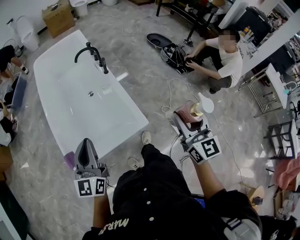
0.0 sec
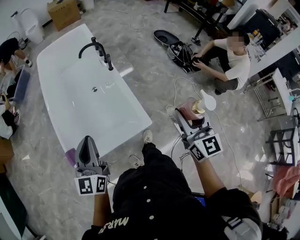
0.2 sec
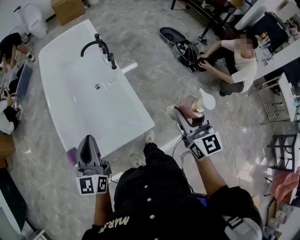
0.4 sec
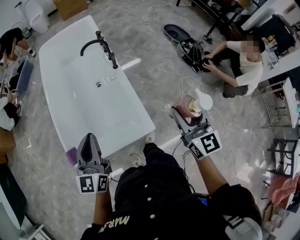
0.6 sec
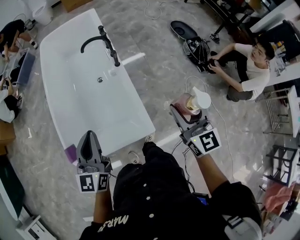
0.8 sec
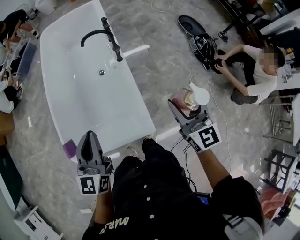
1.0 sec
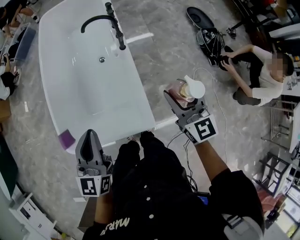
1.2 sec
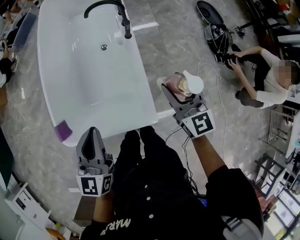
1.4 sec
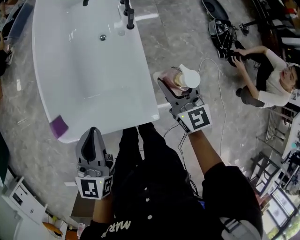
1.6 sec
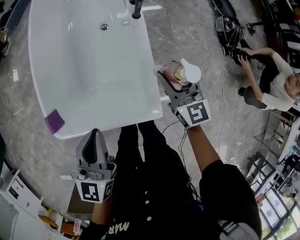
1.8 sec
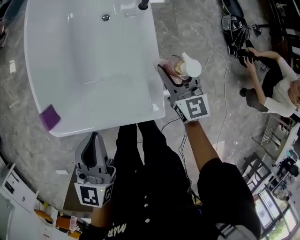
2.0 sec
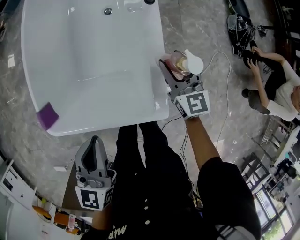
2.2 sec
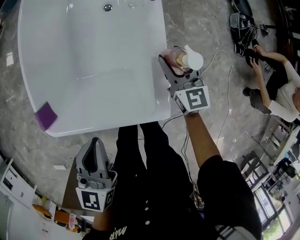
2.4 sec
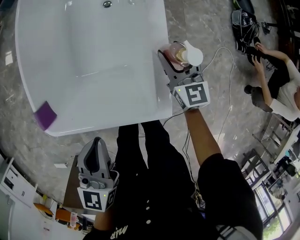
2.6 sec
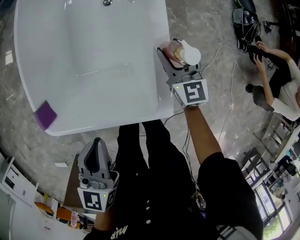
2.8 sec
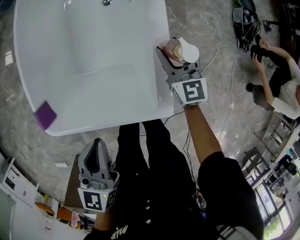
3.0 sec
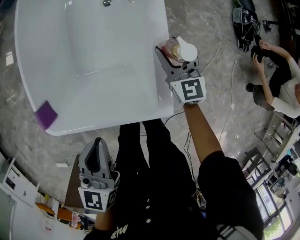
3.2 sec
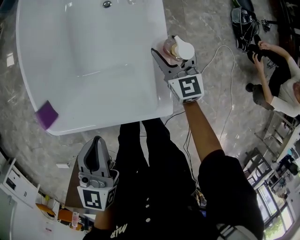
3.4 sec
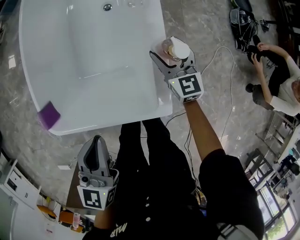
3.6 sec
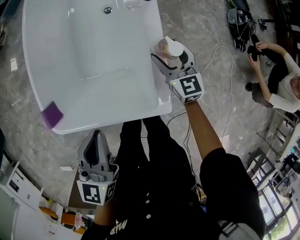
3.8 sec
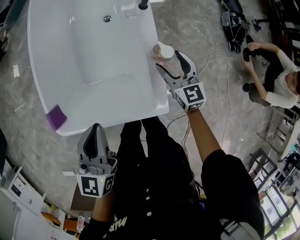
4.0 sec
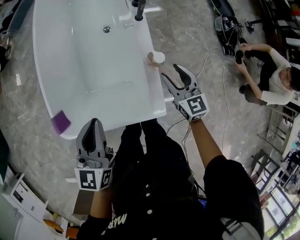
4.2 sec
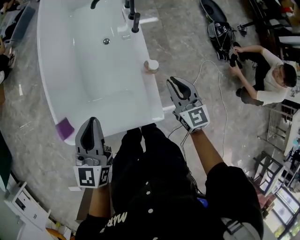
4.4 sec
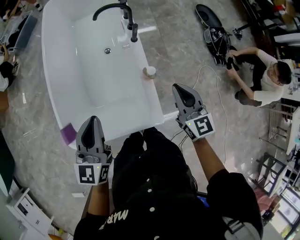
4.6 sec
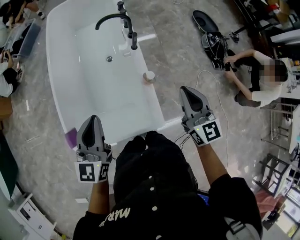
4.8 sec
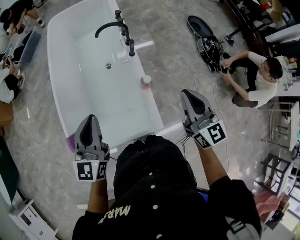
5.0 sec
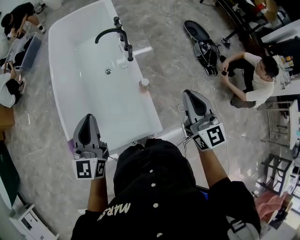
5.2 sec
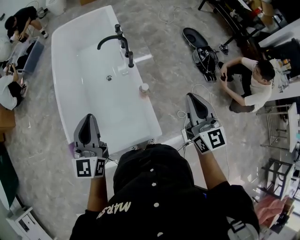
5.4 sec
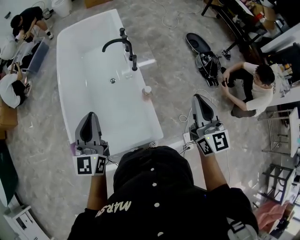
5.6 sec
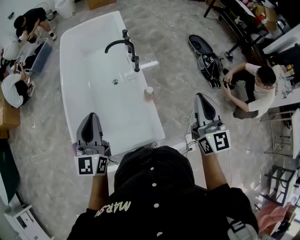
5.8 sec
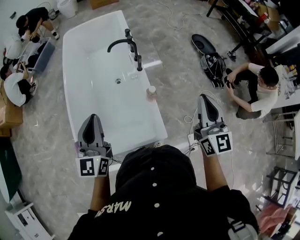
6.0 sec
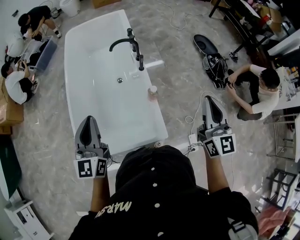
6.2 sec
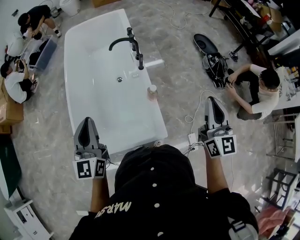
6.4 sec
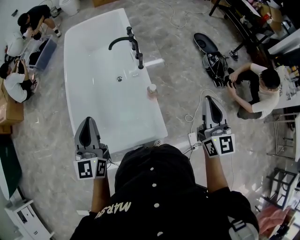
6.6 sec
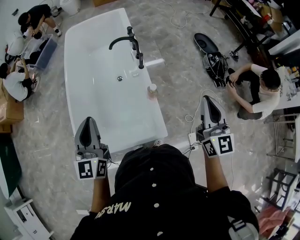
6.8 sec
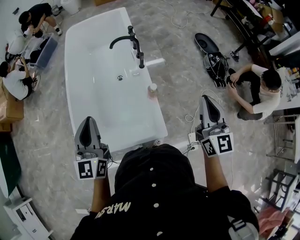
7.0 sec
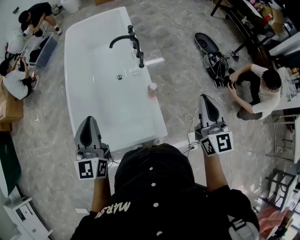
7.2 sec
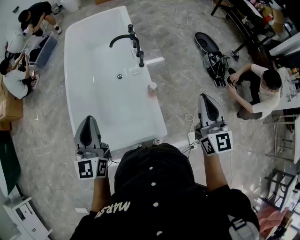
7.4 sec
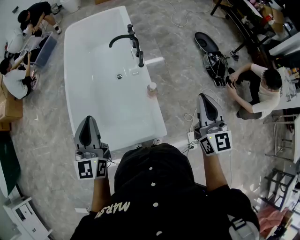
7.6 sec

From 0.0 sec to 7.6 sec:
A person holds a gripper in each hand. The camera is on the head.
From 0.0 sec to 1.6 sec: The left gripper shifts roughly 20 cm forward, downward and to the right, and swivels approximately 20 degrees. Meanwhile the right gripper shifts approximately 40 cm forward and downward, and swivels some 30 degrees.
From 1.6 sec to 3.0 sec: The right gripper travels downward by approximately 20 cm, while the left gripper travels downward by about 15 cm.
From 3.0 sec to 4.6 sec: The left gripper shifts roughly 15 cm upward. Meanwhile the right gripper is displaced upward and backward by some 30 cm, and closes up.
From 4.6 sec to 6.0 sec: The right gripper goes roughly 20 cm upward and to the right, and changes its angle by some 20 degrees; the left gripper shifts approximately 10 cm upward.
From 6.0 sec to 7.6 sec: The grippers move only a little.

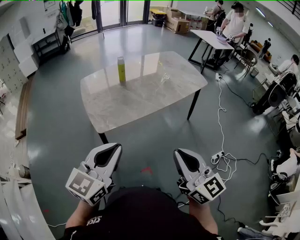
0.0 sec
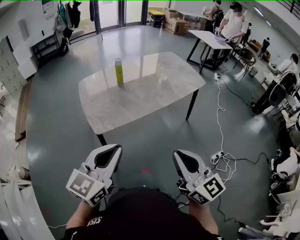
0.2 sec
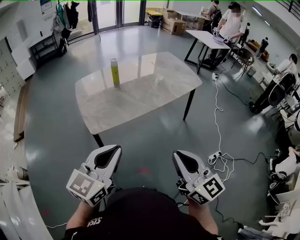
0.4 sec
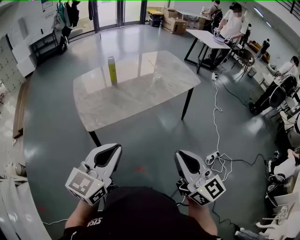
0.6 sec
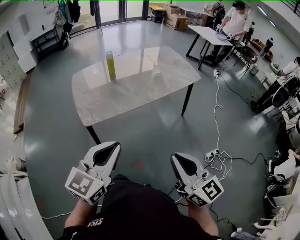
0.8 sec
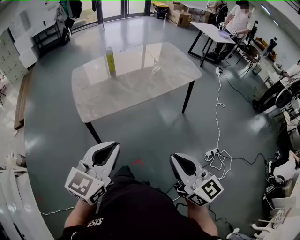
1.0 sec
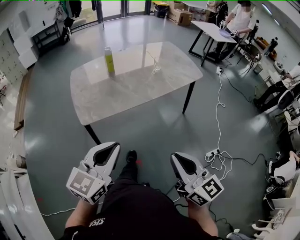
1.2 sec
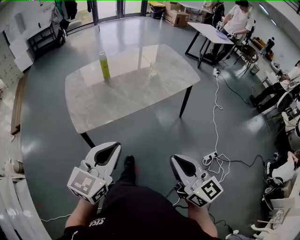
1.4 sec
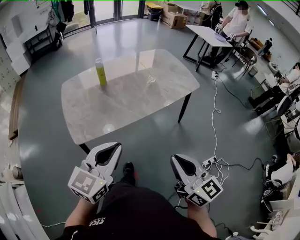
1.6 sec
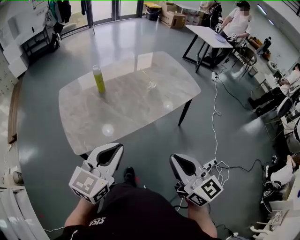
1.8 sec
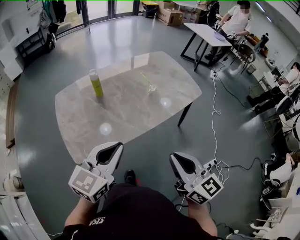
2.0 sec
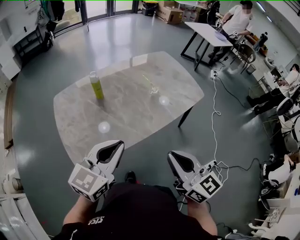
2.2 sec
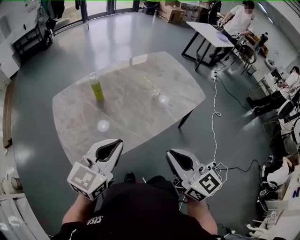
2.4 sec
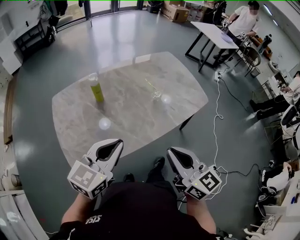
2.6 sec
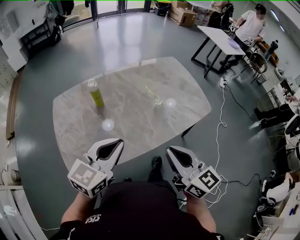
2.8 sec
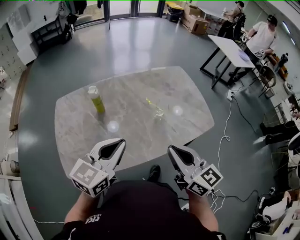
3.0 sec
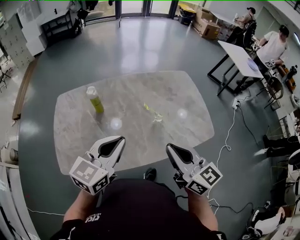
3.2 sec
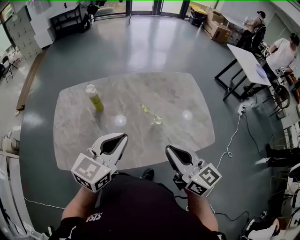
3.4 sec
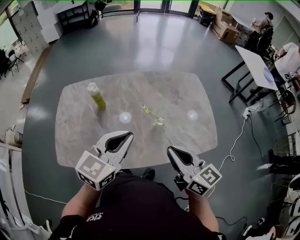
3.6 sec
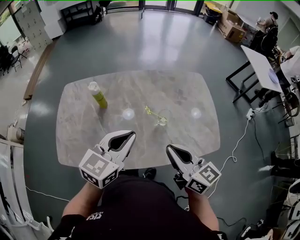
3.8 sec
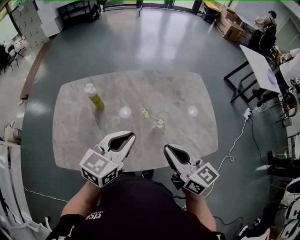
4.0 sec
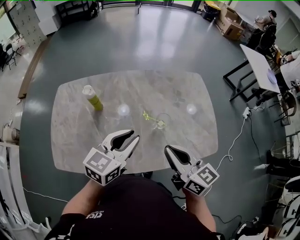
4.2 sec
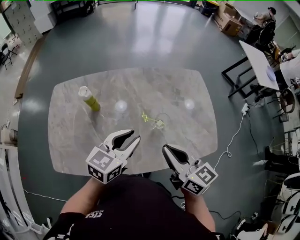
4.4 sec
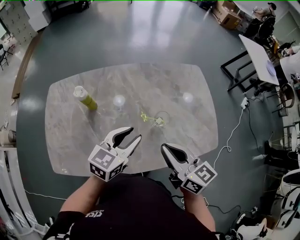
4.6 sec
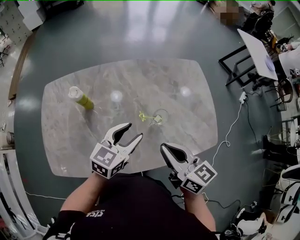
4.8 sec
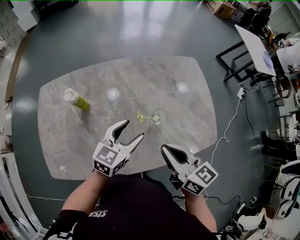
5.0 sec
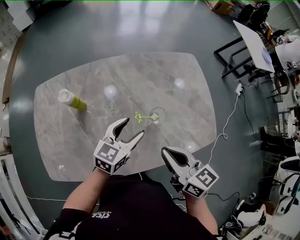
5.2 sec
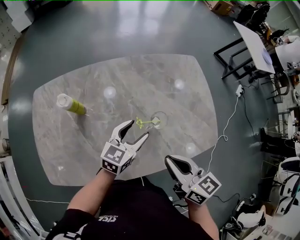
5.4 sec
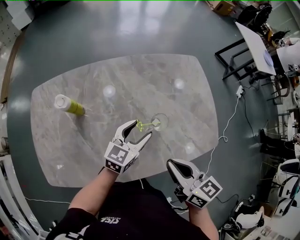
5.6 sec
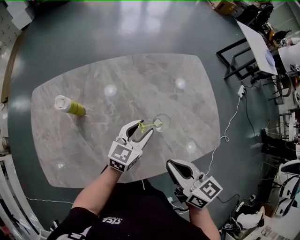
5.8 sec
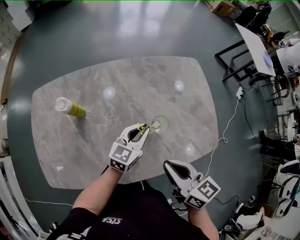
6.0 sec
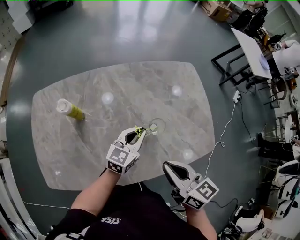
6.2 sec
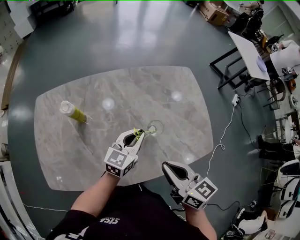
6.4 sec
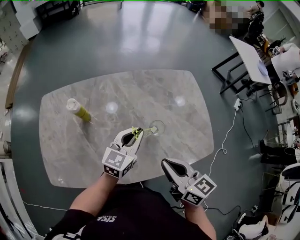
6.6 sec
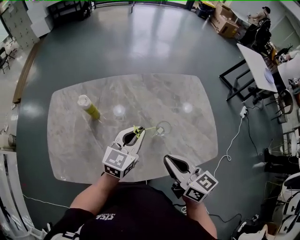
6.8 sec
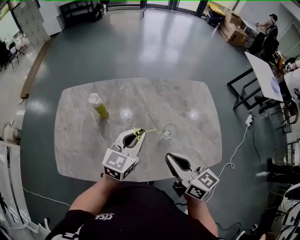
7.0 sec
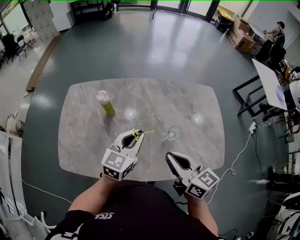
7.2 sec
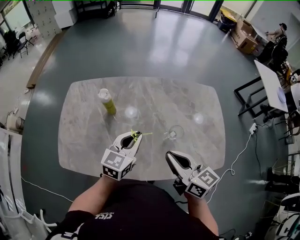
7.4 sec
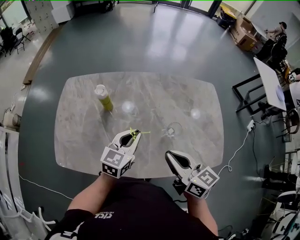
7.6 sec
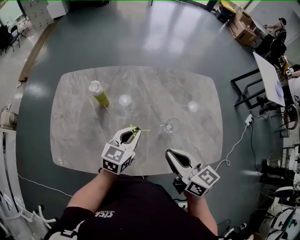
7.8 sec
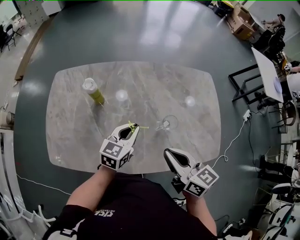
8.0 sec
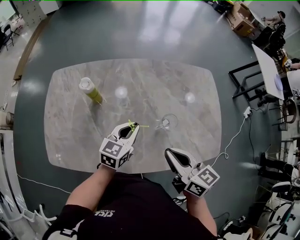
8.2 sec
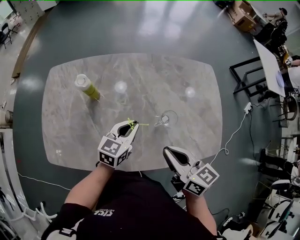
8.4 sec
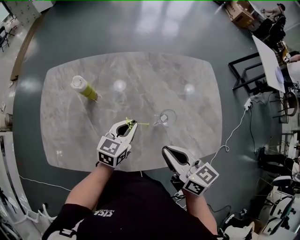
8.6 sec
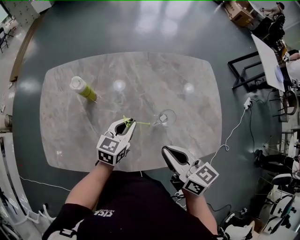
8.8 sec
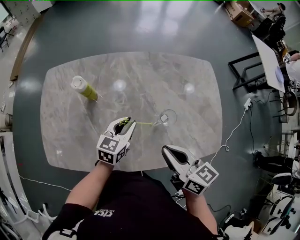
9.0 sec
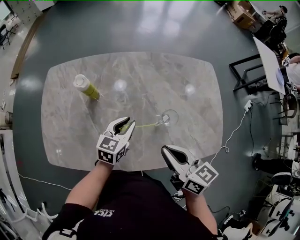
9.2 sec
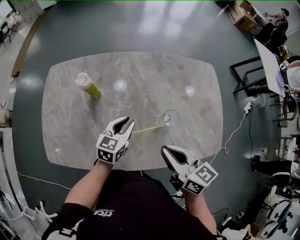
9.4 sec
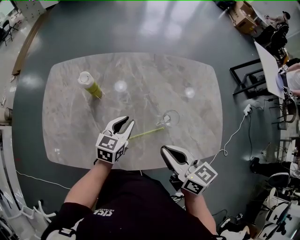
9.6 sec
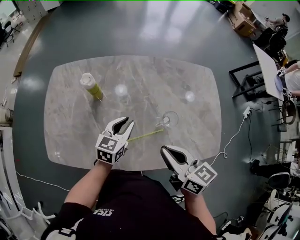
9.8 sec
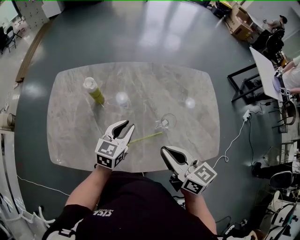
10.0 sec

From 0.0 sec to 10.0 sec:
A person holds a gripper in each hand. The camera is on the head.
From 0.0 sec to 1.4 sec: The two grippers go approximately 10 cm to the right.
From 1.4 sec to 2.8 sec: Both grippers move forward, about 35 cm.
From 2.8 sec to 4.2 sec: Both grippers travel together forward and to the right, about 20 cm. The right gripper rotates roughly 20 degrees.
From 4.2 sec to 5.8 sec: The left gripper is displaced downward, forward and to the right by some 20 cm, and opens. Meanwhile the right gripper moves downward, some 10 cm.
From 5.8 sec to 7.2 sec: The right gripper goes about 5 cm upward. The left gripper is displaced upward and to the left by approximately 15 cm, and closes its fingers.
From 7.2 sec to 8.6 sec: The left gripper goes about 10 cm downward, while the right gripper moves roughly 5 cm.
From 8.6 sec to 10.0 sec: The left gripper shifts by approximately 5 cm.

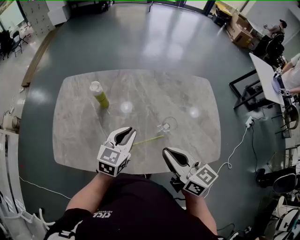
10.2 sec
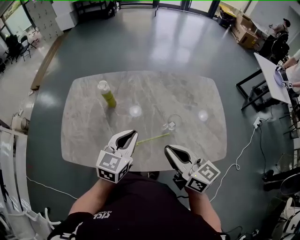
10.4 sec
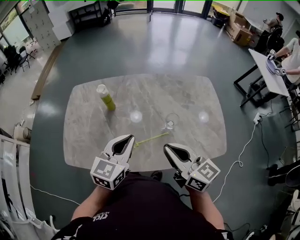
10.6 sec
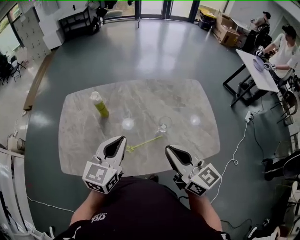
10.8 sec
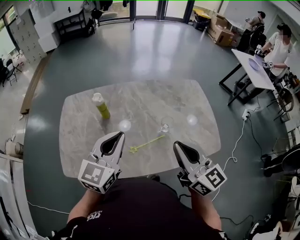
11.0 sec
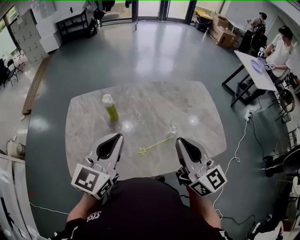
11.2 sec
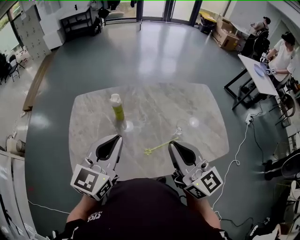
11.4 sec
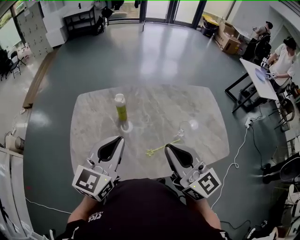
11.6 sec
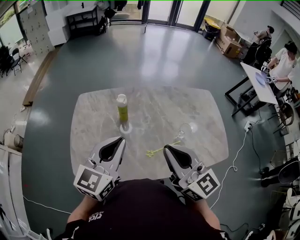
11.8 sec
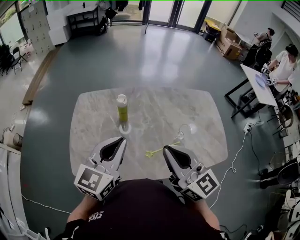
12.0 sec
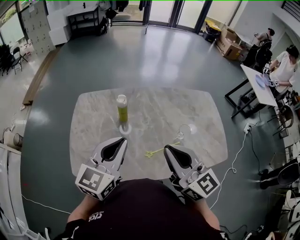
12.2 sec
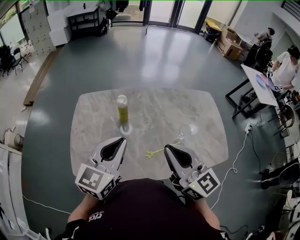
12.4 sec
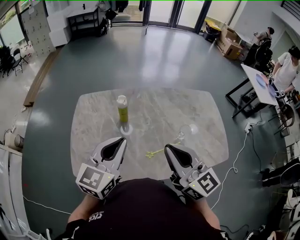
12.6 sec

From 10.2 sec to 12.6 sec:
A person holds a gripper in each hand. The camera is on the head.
From 10.2 sec to 11.4 sec: The left gripper moves upward and to the left, roughly 25 cm. The right gripper travels upward and to the left by roughly 15 cm, and turns by approximately 30 degrees.
From 11.4 sec to 12.6 sec: The grippers make only small movements.

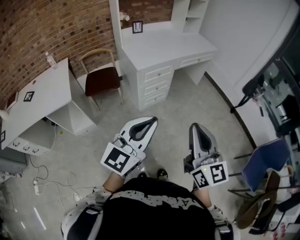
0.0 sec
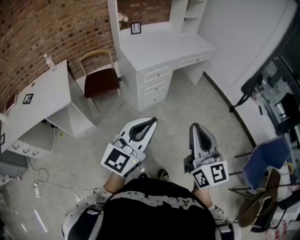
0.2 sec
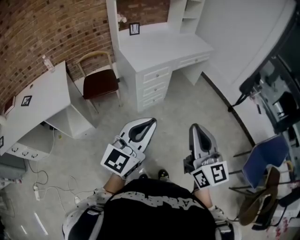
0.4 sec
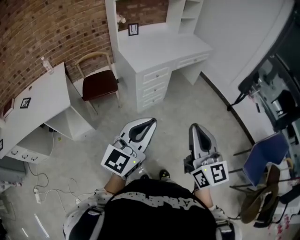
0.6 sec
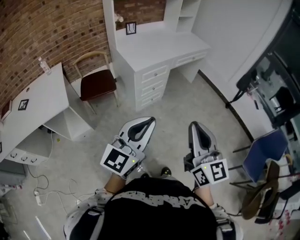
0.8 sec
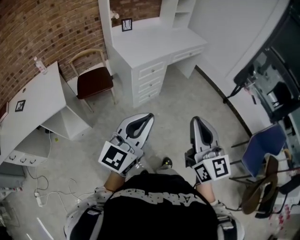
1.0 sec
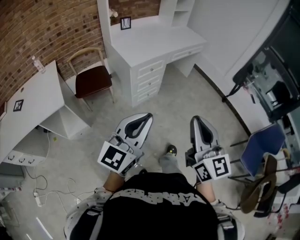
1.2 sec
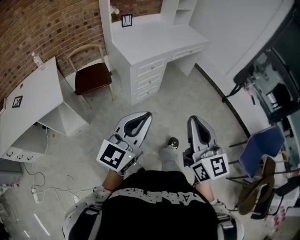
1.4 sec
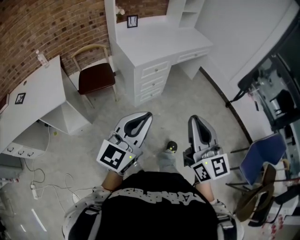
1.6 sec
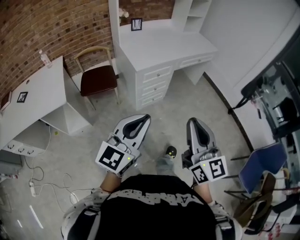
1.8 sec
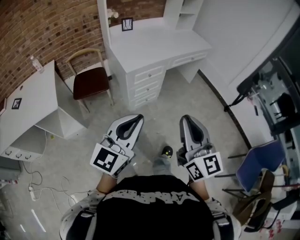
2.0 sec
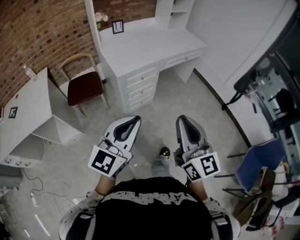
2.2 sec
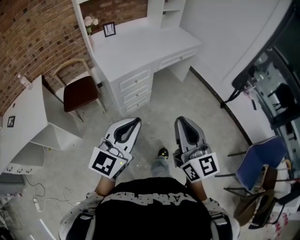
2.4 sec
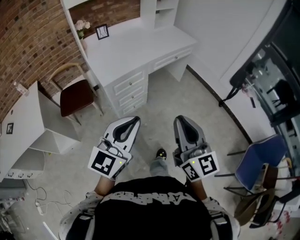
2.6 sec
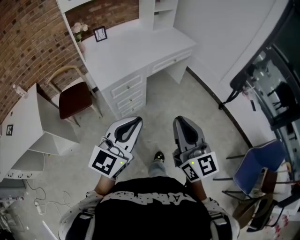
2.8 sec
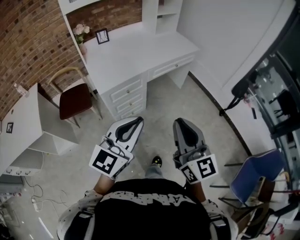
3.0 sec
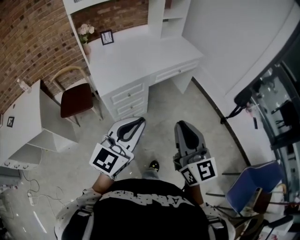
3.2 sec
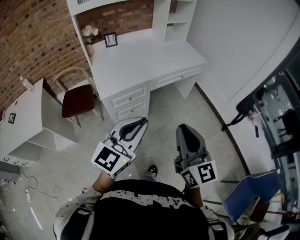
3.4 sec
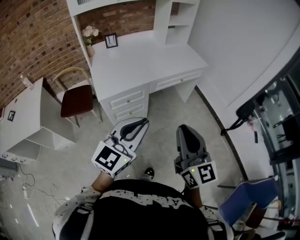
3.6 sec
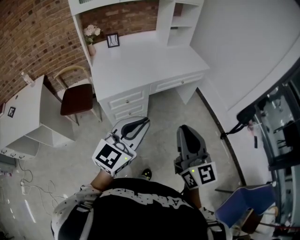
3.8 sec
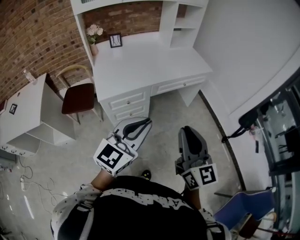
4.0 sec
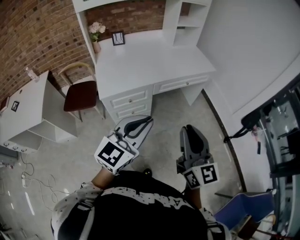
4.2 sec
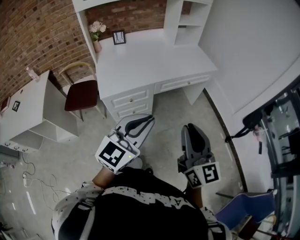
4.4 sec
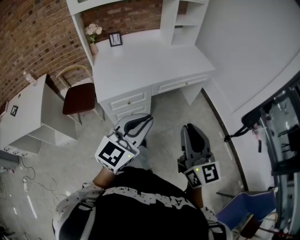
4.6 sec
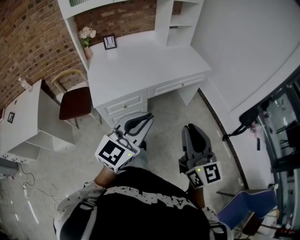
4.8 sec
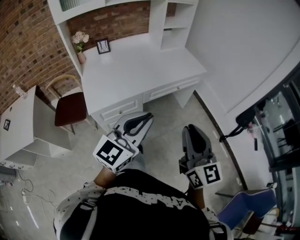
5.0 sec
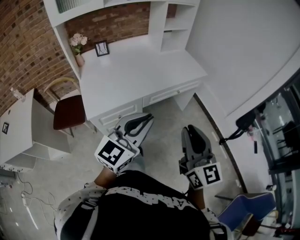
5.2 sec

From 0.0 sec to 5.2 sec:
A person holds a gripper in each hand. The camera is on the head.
From 0.0 sec to 1.8 sec: The right gripper is displaced forward by approximately 5 cm. Meanwhile the left gripper changes place by approximately 5 cm.
From 1.8 sec to 3.4 sec: The two grippers go approximately 30 cm forward and to the right.
From 3.4 sec to 5.2 sec: The grippers both shift forward by roughly 15 cm.
